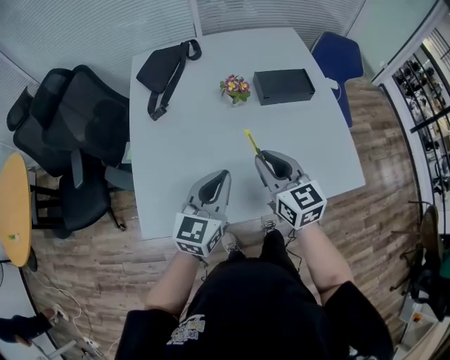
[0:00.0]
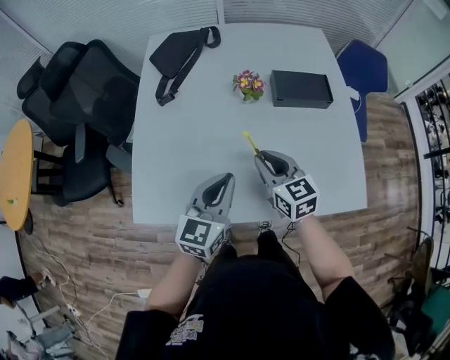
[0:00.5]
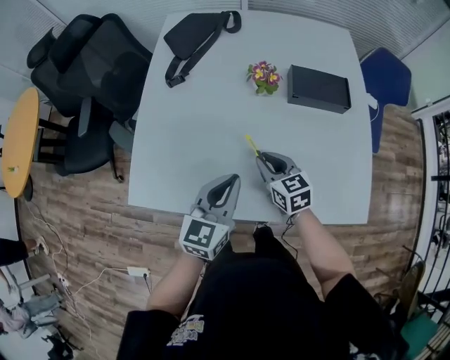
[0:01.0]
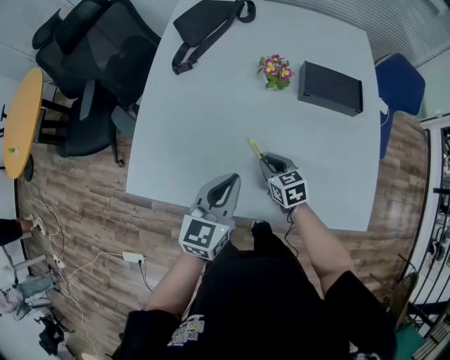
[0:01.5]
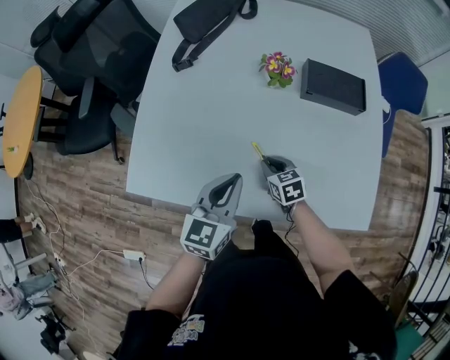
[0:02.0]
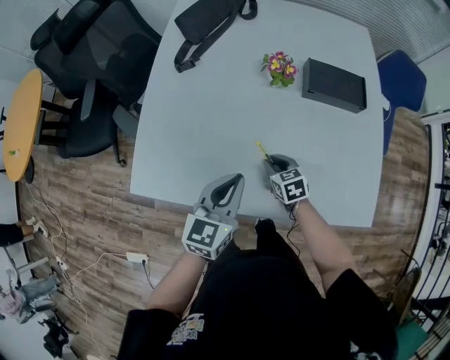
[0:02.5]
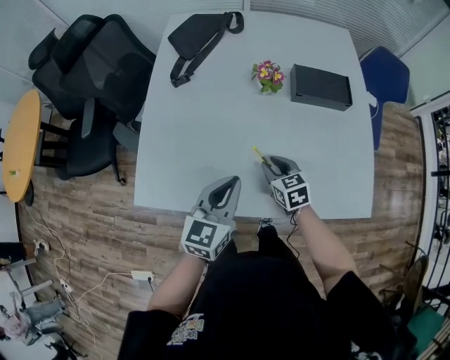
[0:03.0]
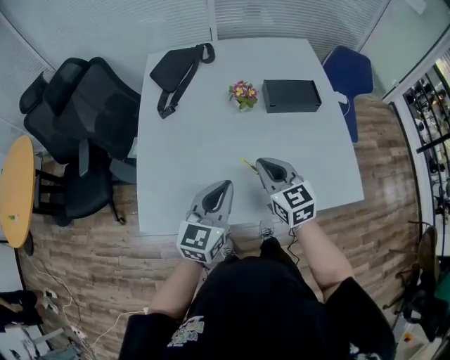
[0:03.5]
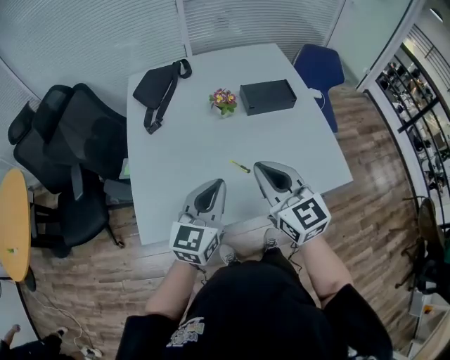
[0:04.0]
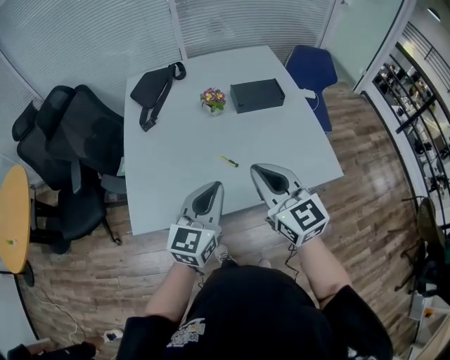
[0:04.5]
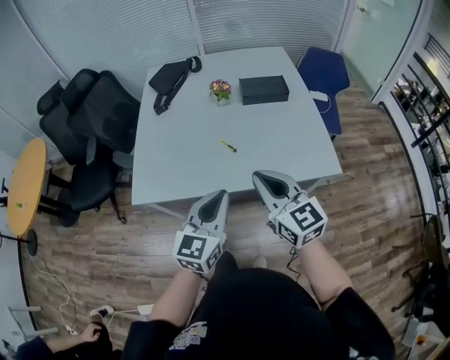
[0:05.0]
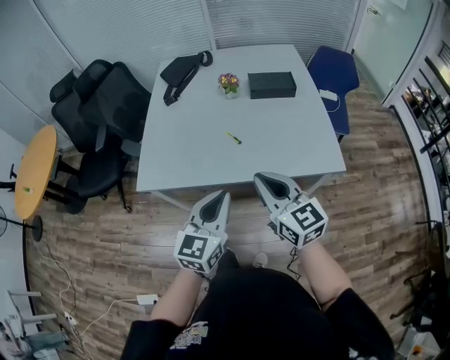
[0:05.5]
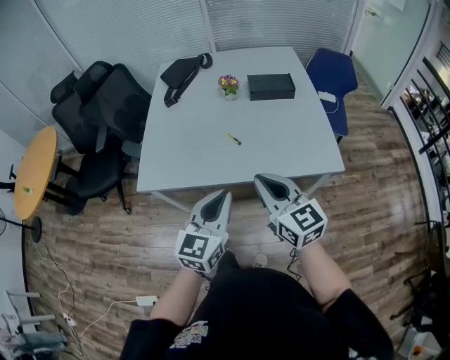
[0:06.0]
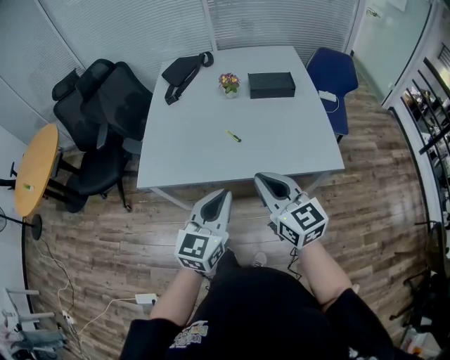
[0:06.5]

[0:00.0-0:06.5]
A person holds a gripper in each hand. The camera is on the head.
0.0 to 2.0 s: The left gripper heads downward, covering approximately 10 cm, and swivels roughly 20 degrees. Meanwhile the right gripper shifts roughly 25 cm downward, and tips its fingers downward by roughly 30 degrees.
2.0 to 4.5 s: The right gripper goes roughly 40 cm upward and backward, and points its fingers some 40 degrees further upward, while the left gripper heads upward and backward, covering approximately 15 cm, and turns by some 20 degrees.
4.5 to 6.5 s: Both grippers travel together backward, about 15 cm.

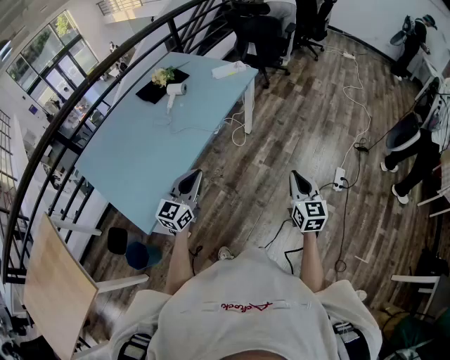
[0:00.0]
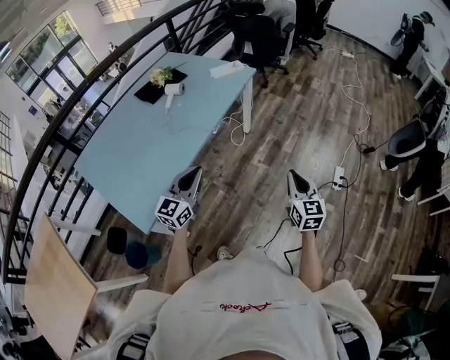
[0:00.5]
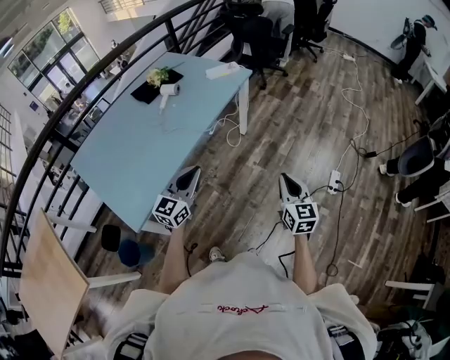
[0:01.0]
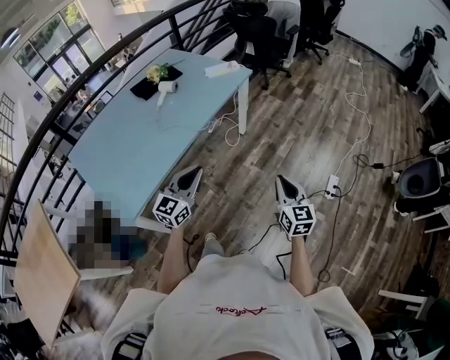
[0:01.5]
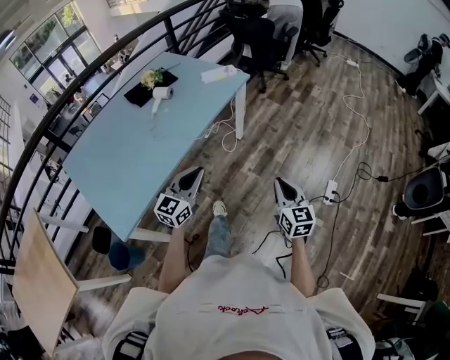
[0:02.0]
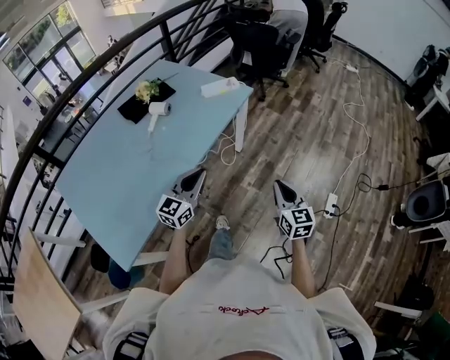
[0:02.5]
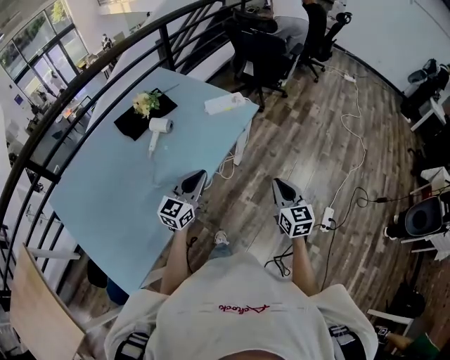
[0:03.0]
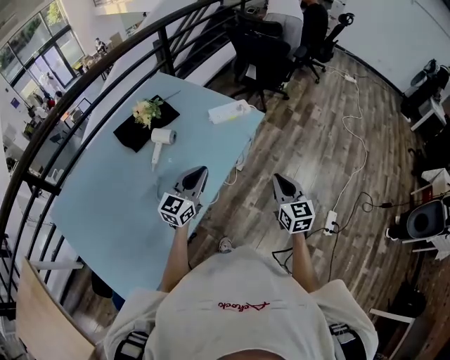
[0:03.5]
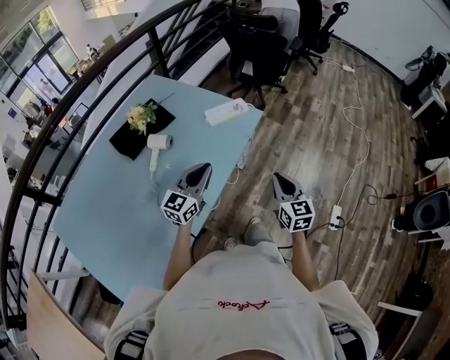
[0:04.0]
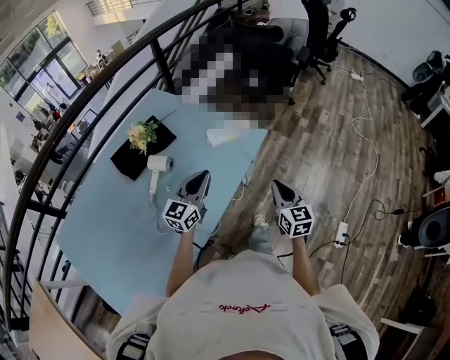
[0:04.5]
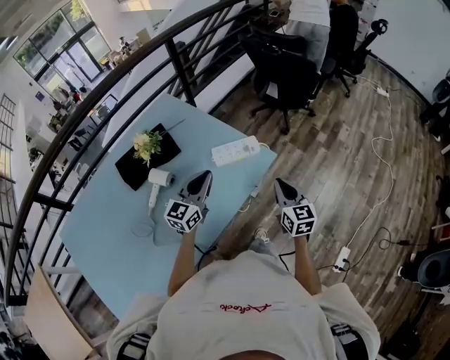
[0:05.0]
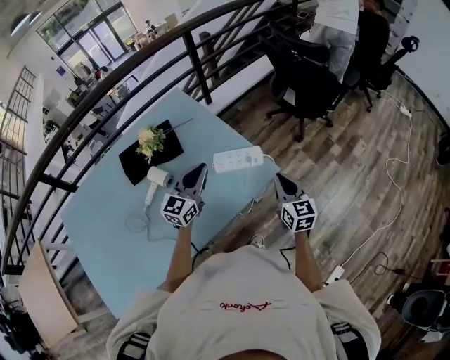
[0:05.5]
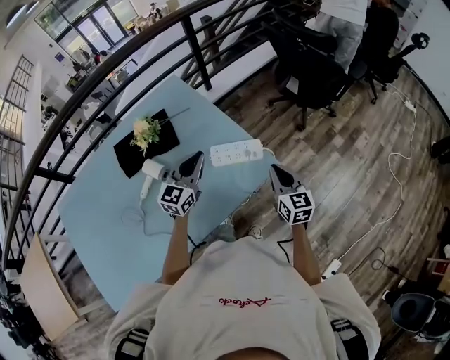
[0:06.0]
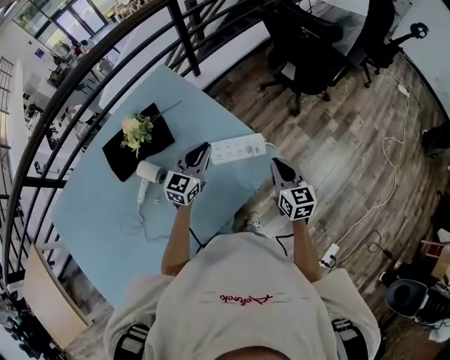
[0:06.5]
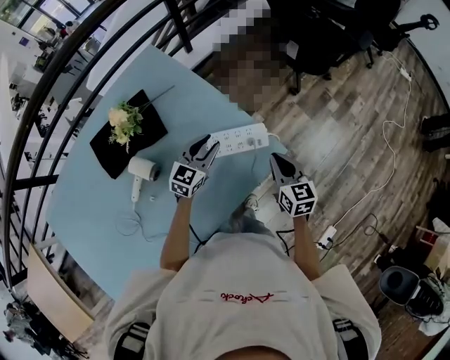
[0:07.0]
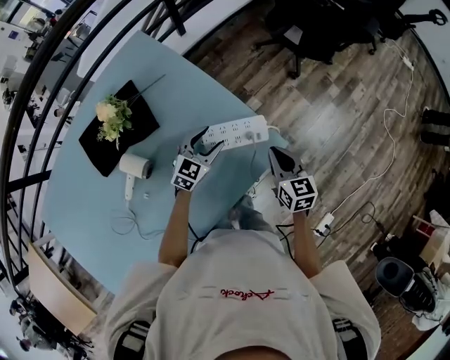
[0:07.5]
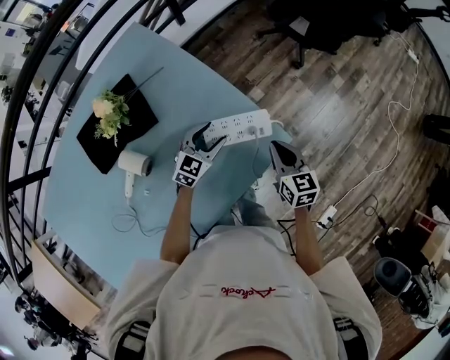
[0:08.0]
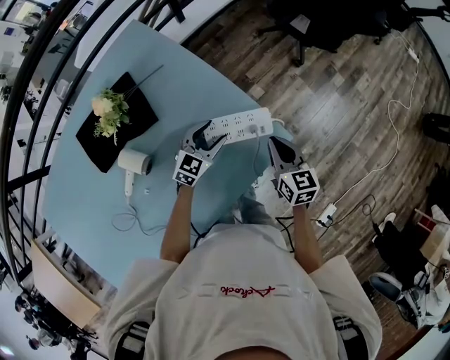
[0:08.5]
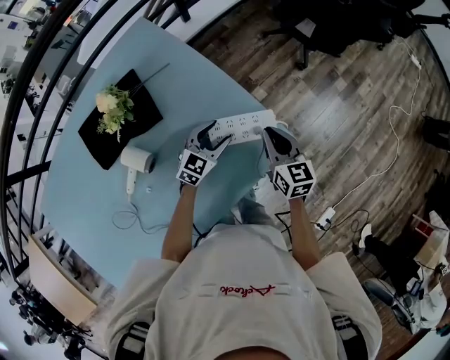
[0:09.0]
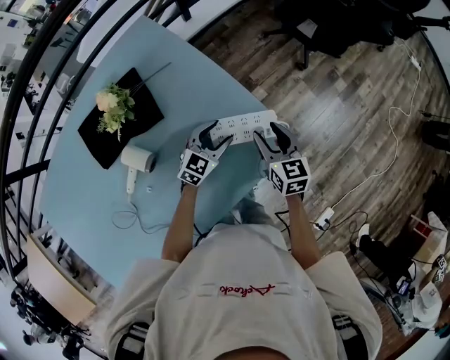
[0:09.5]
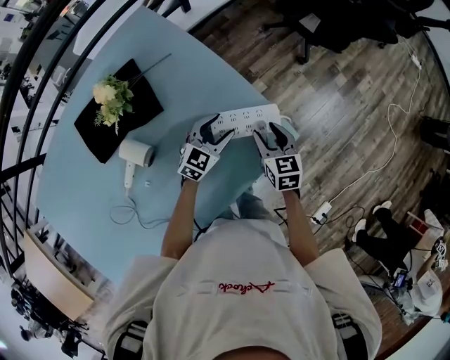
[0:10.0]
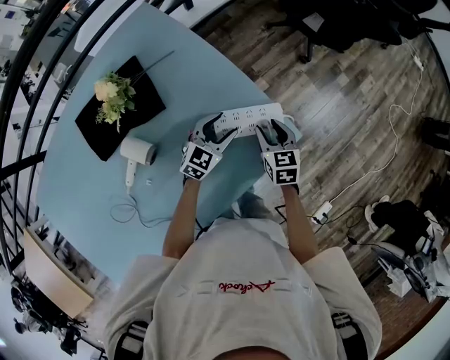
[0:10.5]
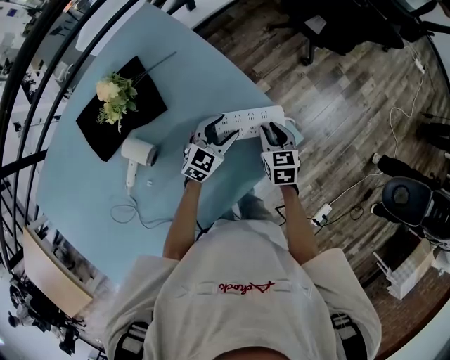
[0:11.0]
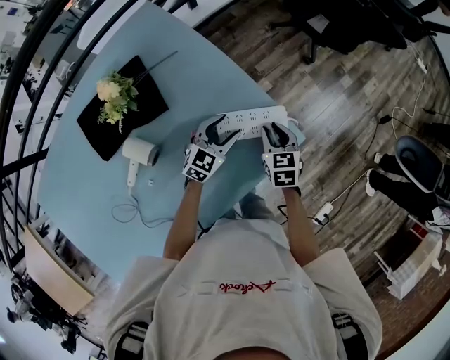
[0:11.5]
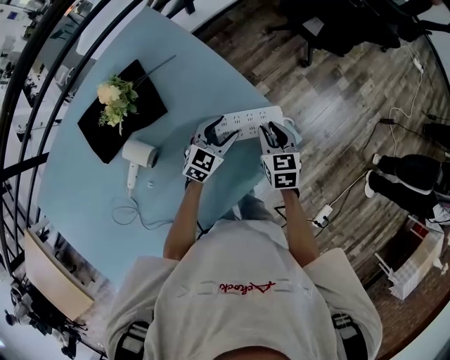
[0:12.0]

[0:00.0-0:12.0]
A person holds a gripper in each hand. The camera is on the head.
0.0 to 2.0 s: The right gripper moves forward, some 5 cm, while the left gripper travels to the right and forward by approximately 15 cm.
2.0 to 4.0 s: The left gripper goes approximately 35 cm forward. Meanwhile the right gripper heads forward and to the left, covering about 40 cm.
4.0 to 6.0 s: The two grippers go about 35 cm forward. The right gripper changes its angle by about 20 degrees. The left gripper rotates about 30 degrees.
6.0 to 8.0 s: The left gripper heads downward, covering approximately 25 cm, changes its angle by roughly 30 degrees, and opens its fingers, while the right gripper is displaced downward and forward by about 15 cm.
8.0 to 10.0 s: The right gripper travels to the left by roughly 5 cm, and opens its fingers.
10.0 to 12.0 s: The right gripper closes up.

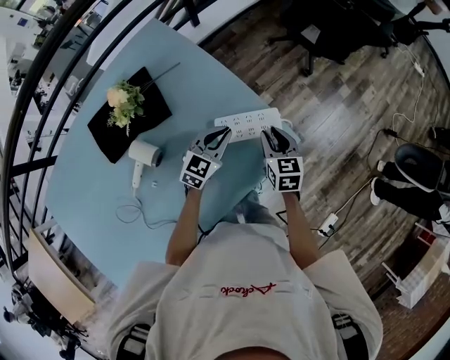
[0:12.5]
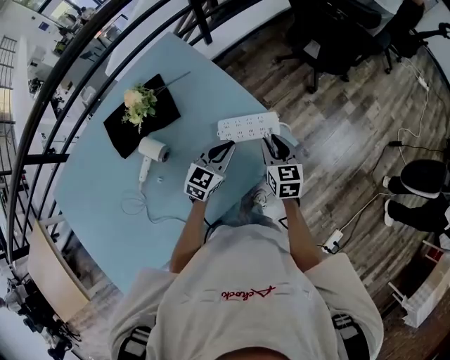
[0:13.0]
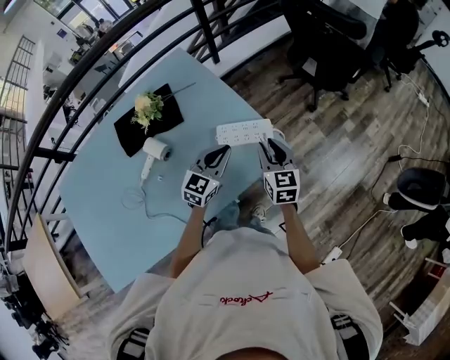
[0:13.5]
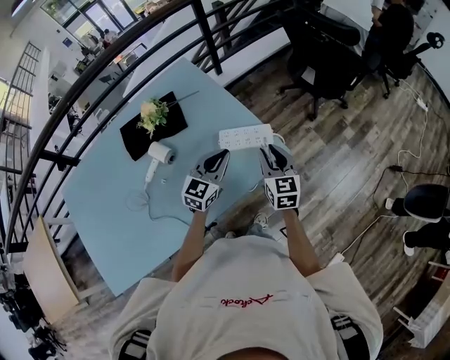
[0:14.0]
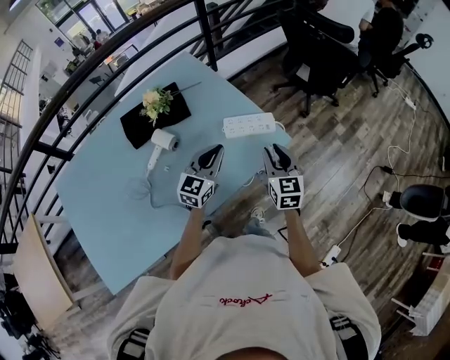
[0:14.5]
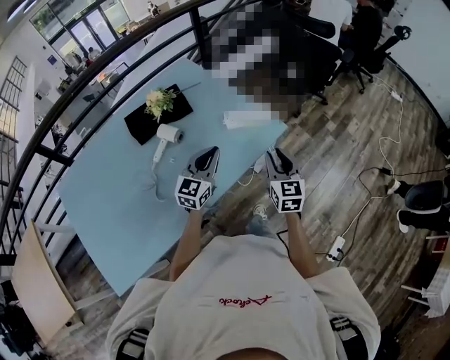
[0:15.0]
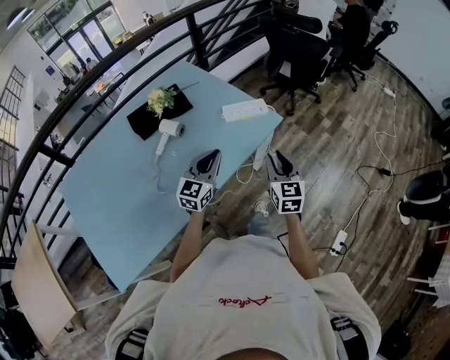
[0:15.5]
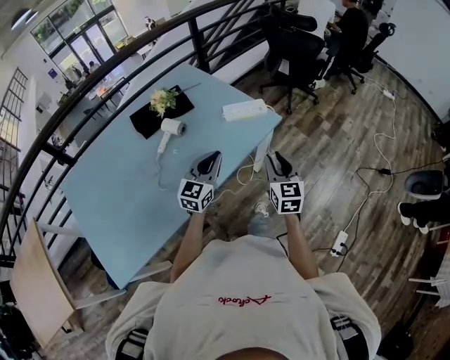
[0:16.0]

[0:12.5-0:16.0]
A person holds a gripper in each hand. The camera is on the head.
12.5 to 14.5 s: Both grippers move backward and upward, about 20 cm. The right gripper rotates some 20 degrees; the left gripper rotates about 20 degrees.
14.5 to 16.0 s: Both grippers move backward, about 20 cm.

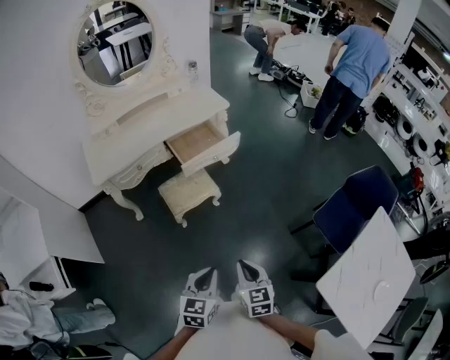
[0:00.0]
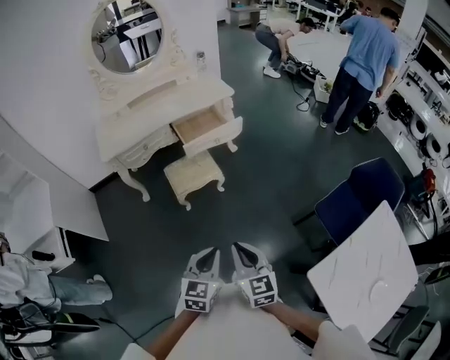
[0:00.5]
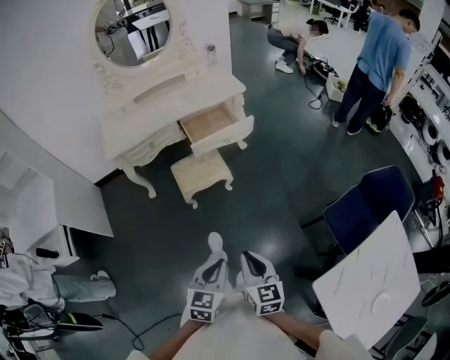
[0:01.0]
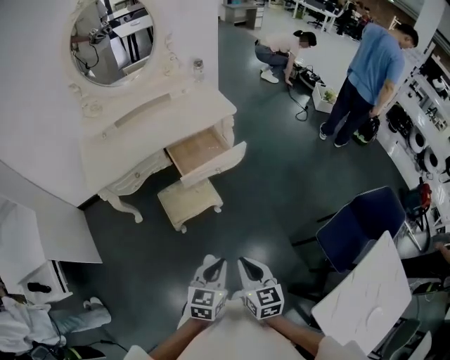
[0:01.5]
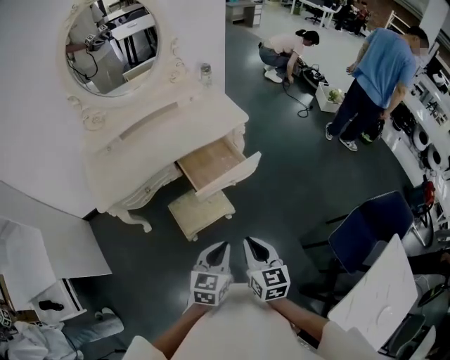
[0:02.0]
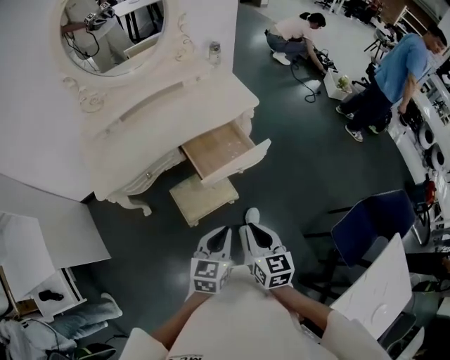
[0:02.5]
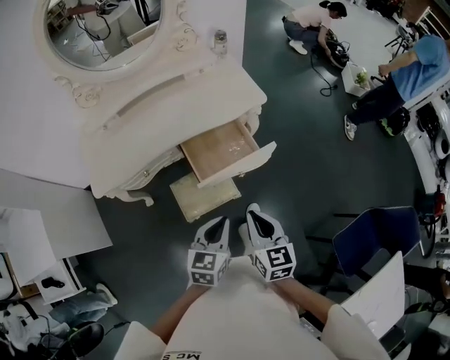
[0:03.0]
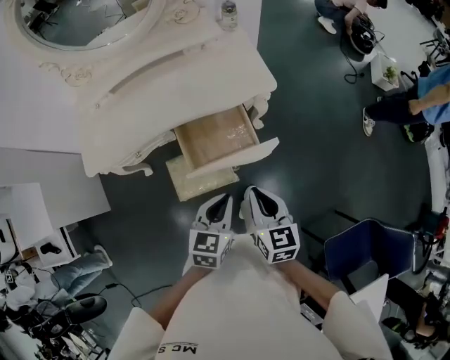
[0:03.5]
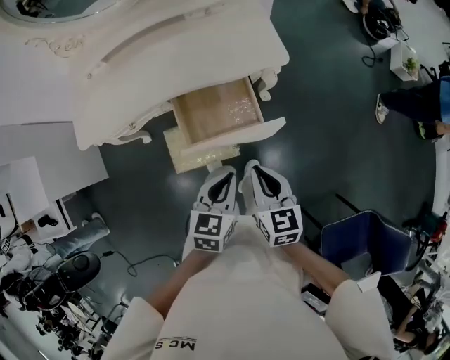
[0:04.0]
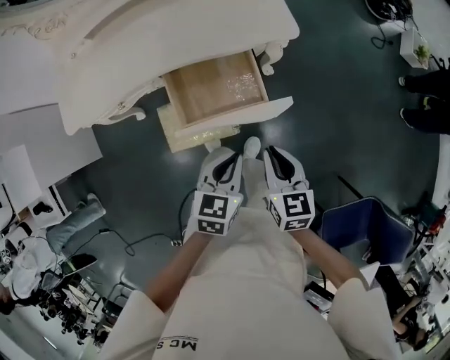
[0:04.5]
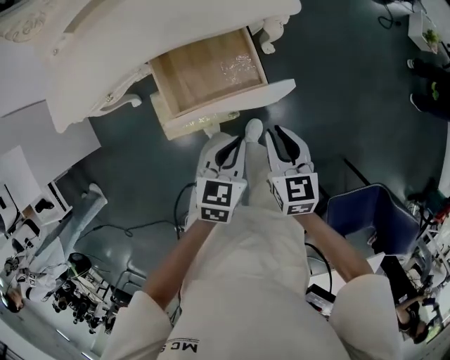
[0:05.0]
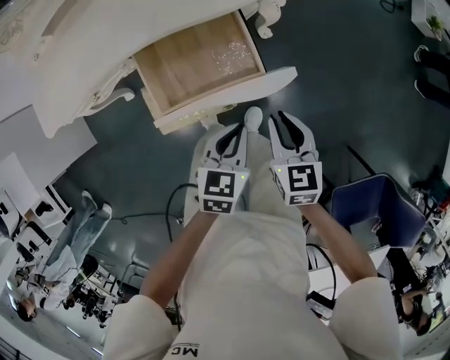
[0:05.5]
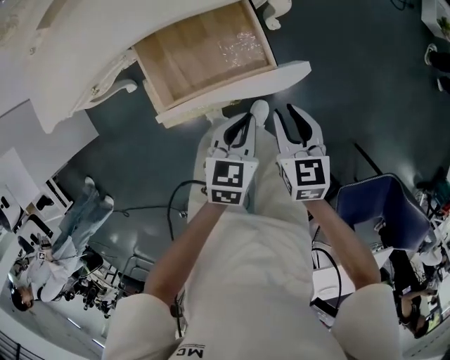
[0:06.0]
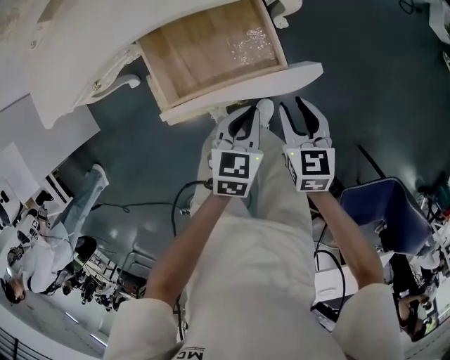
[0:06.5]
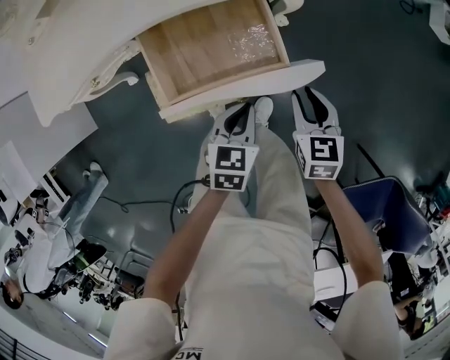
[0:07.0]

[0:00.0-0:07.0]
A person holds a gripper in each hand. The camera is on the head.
0.0 to 2.0 s: Both grippers move forward, approximately 25 cm.
2.0 to 3.5 s: Both grippers travel together forward, roughly 25 cm.
3.5 to 5.0 s: The right gripper shifts roughly 15 cm downward. Meanwhile the left gripper is displaced downward and to the right by about 15 cm.
5.0 to 7.0 s: The right gripper moves downward and forward, about 15 cm. Meanwhile the left gripper shifts some 10 cm downward.
